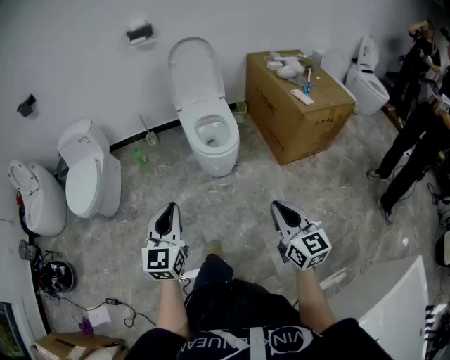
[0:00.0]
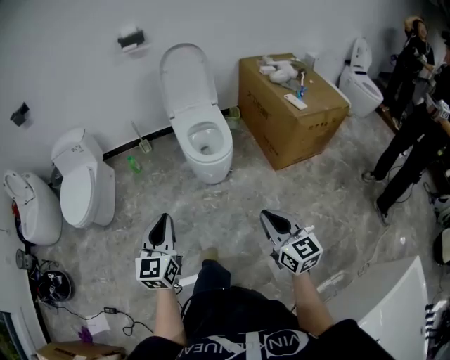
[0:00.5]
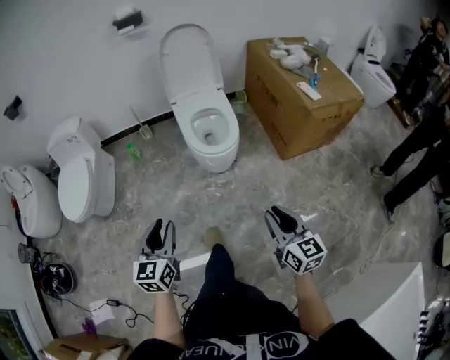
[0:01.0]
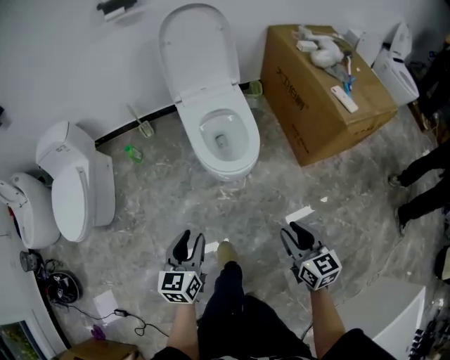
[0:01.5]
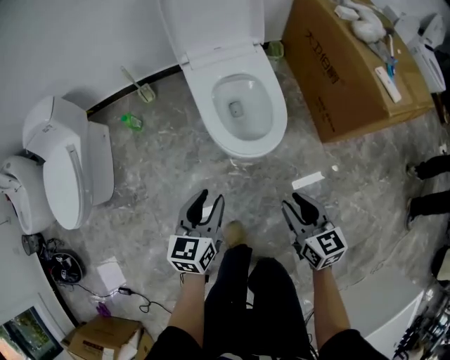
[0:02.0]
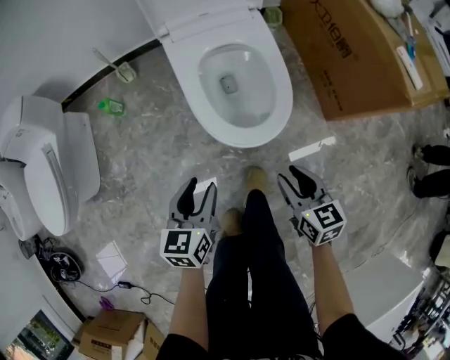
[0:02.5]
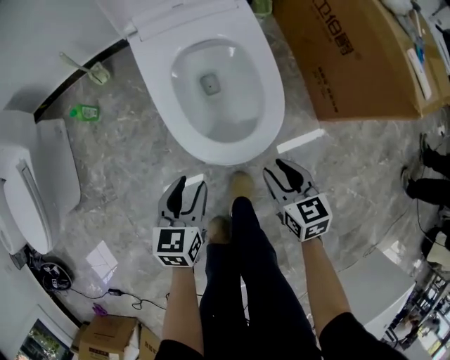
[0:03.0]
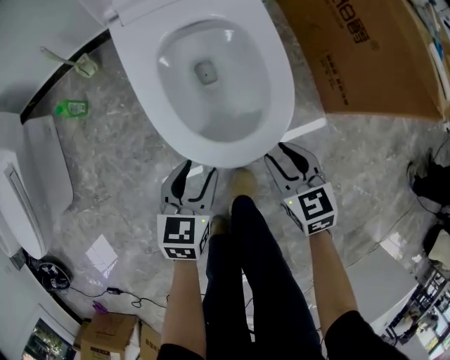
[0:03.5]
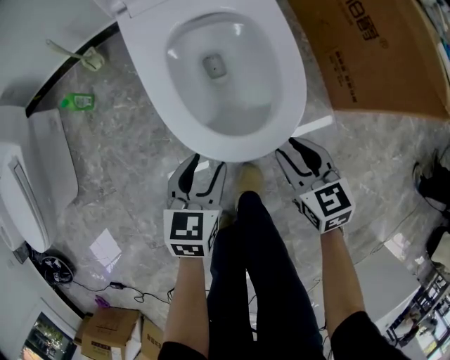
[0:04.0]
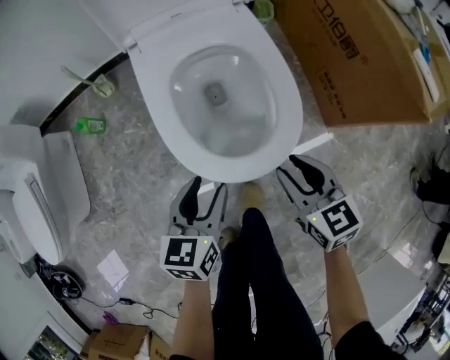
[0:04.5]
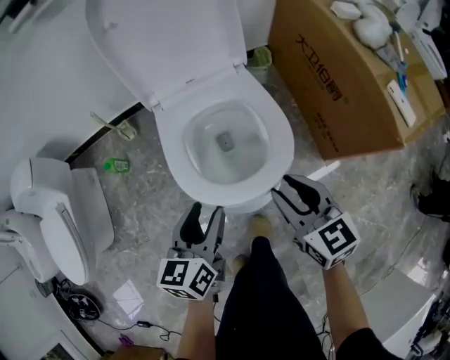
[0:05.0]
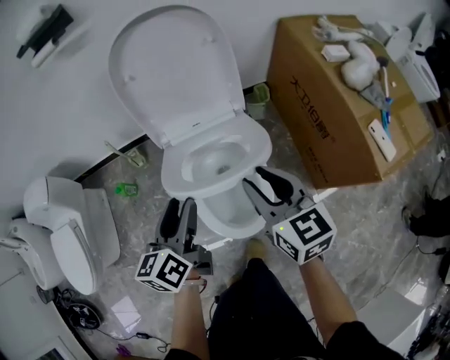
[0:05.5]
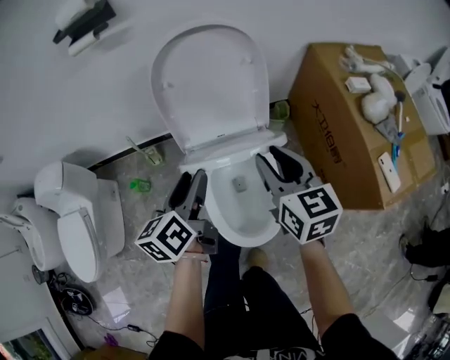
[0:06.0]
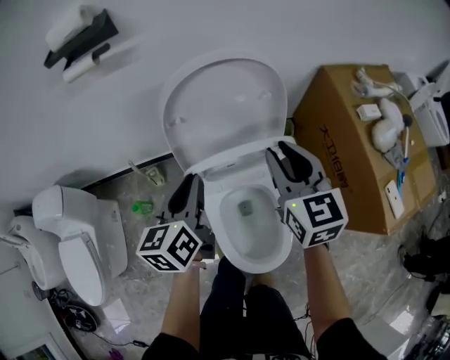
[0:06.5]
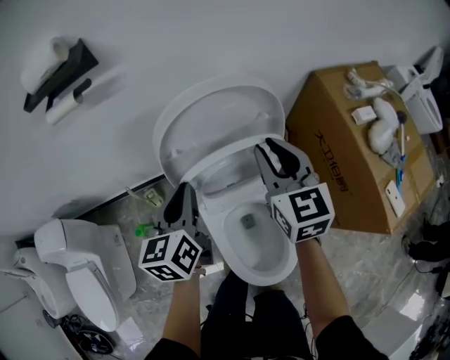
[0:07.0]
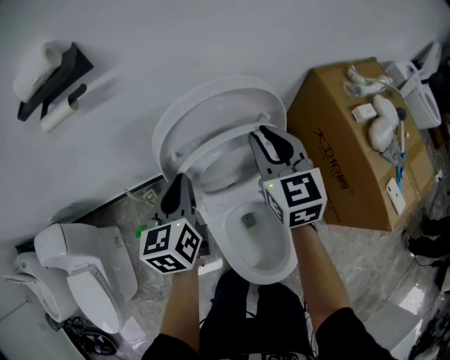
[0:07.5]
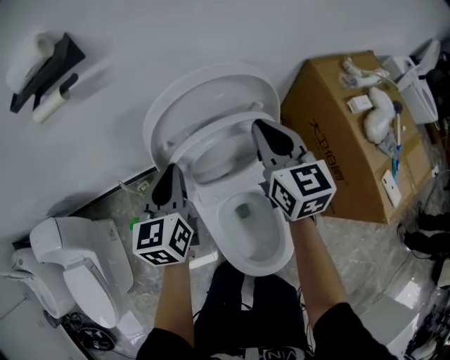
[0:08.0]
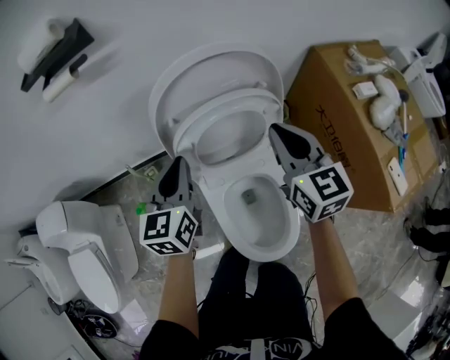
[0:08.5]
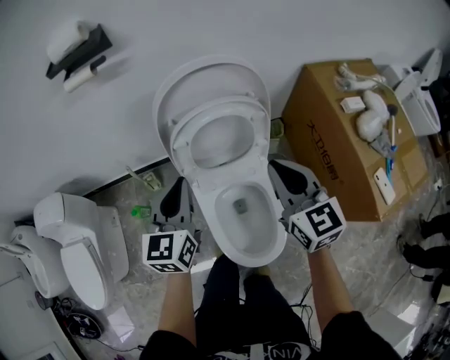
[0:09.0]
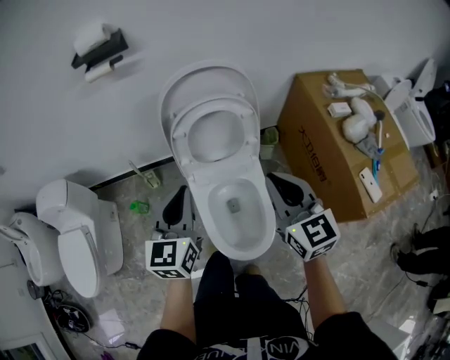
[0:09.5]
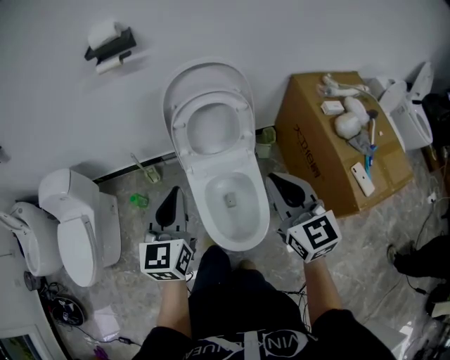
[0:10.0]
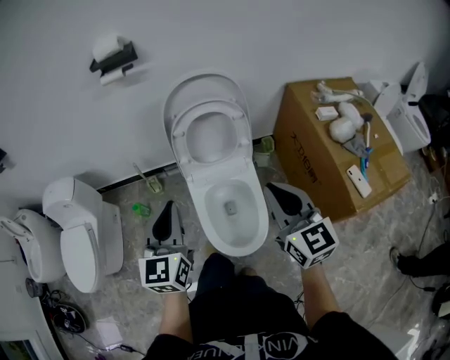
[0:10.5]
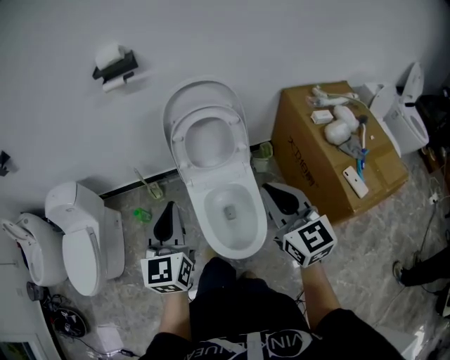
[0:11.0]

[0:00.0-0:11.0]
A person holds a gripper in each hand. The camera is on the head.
0:00.0 to 0:02.0: Both grippers move forward and downward, approximately 40 cm. The right gripper turns by about 20 degrees, and opens its fingers. Meanwhile the left gripper rotates approximately 30 degrees, and opens up.
0:02.0 to 0:03.5: The grippers both shift downward and forward by about 30 cm. The right gripper turns by approximately 20 degrees.
0:03.5 to 0:05.5: Both grippers travel together upward and forward, some 40 cm. The left gripper swivels some 40 degrees; the right gripper changes its angle by roughly 20 degrees.
0:05.5 to 0:07.5: The two grippers go about 30 cm forward. The left gripper closes its fingers.
0:07.5 to 0:09.0: The two grippers go approximately 15 cm backward.
0:09.0 to 0:11.0: Both grippers travel together backward and upward, about 25 cm.

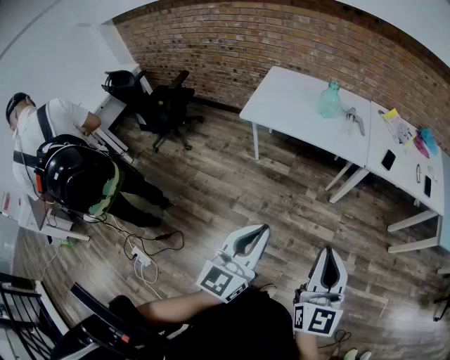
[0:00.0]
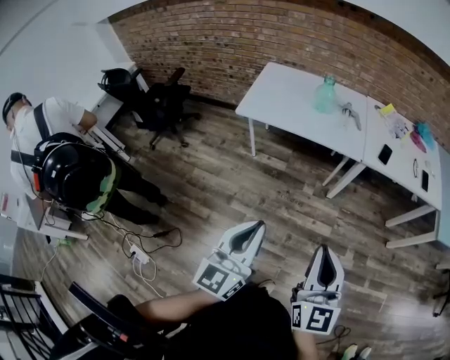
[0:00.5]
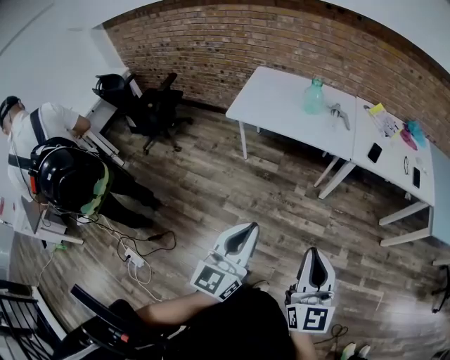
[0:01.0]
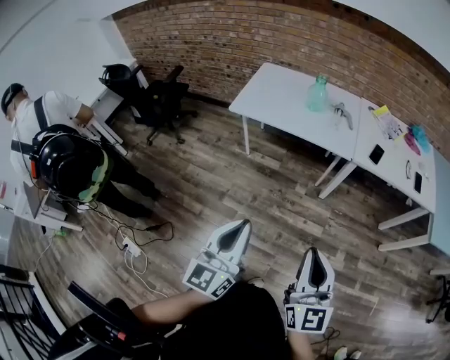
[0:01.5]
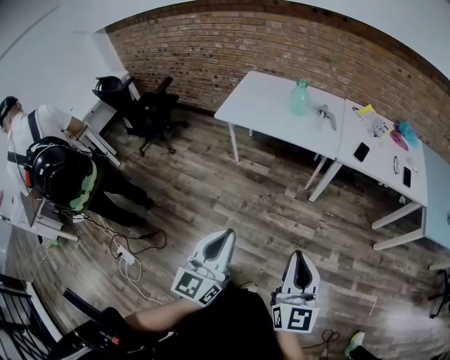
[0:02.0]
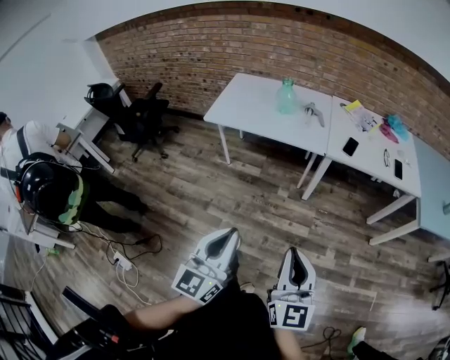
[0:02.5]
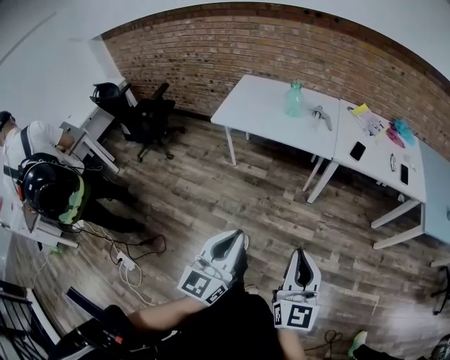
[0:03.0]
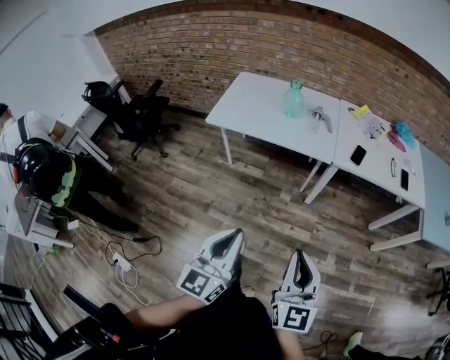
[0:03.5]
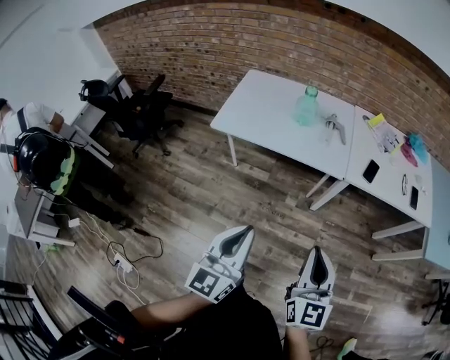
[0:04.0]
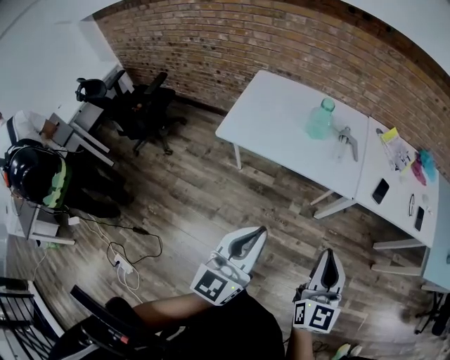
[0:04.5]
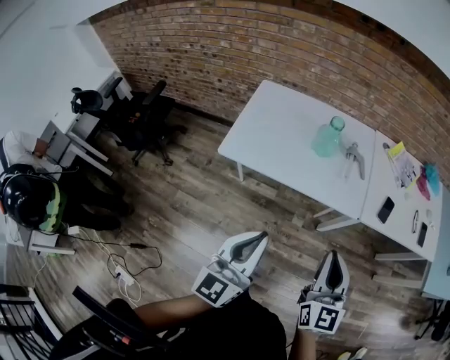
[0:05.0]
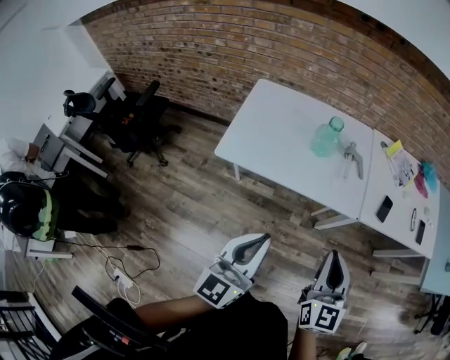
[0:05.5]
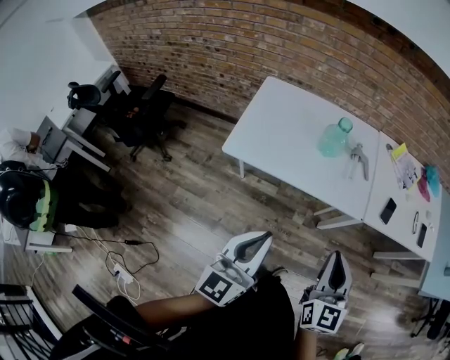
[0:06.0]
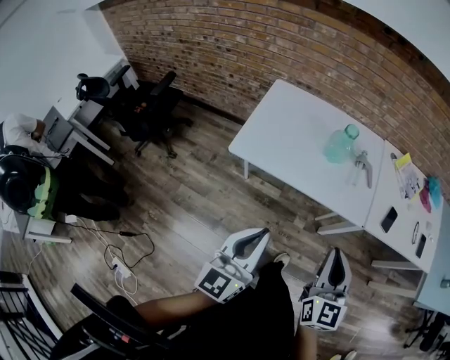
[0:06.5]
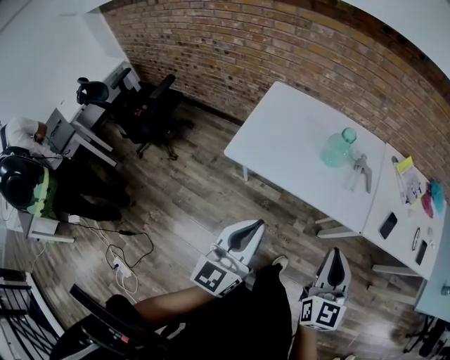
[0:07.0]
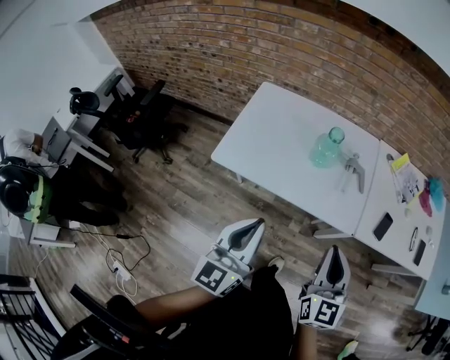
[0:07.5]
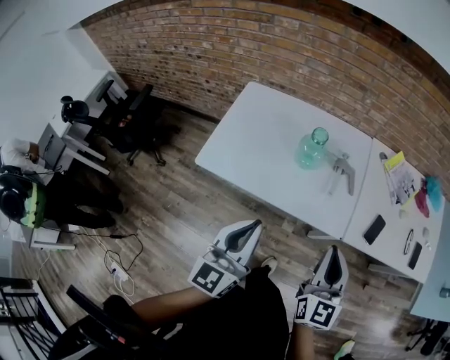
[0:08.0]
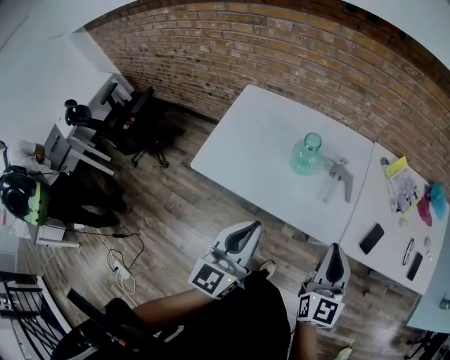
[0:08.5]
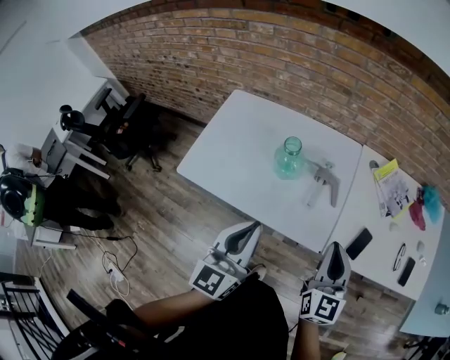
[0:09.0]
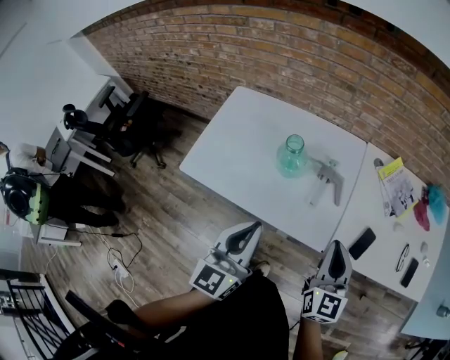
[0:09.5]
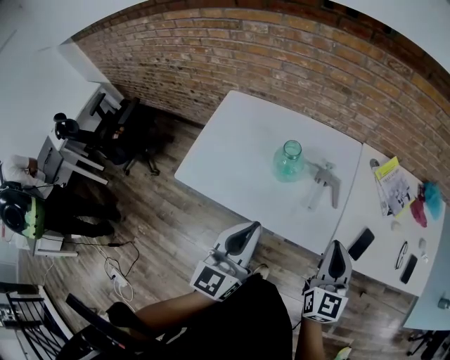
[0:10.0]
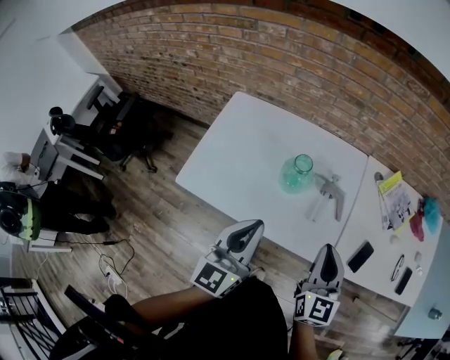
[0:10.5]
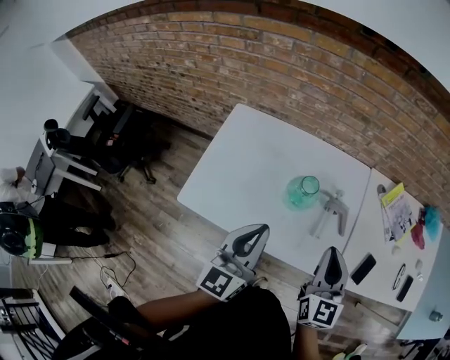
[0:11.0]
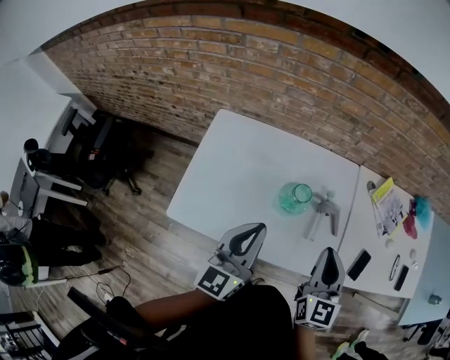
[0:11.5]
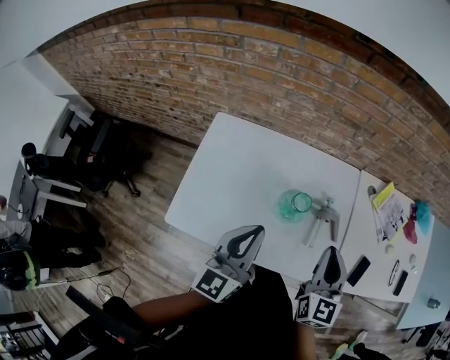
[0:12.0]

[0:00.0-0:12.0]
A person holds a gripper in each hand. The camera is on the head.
0:00.0 to 0:02.0: The right gripper heads to the right and backward, covering some 10 cm. Meanwhile the left gripper travels backward and to the right by some 10 cm.
0:02.0 to 0:04.0: The grippers both shift forward by approximately 20 cm.
0:04.0 to 0:06.0: Both grippers travel together forward and to the left, some 20 cm.
0:06.0 to 0:08.0: The grippers both shift forward and to the right by roughly 15 cm.
0:08.0 to 0:10.0: The grippers both shift forward and to the right by approximately 15 cm.
0:10.0 to 0:12.0: The grippers both shift forward and to the left by some 20 cm.

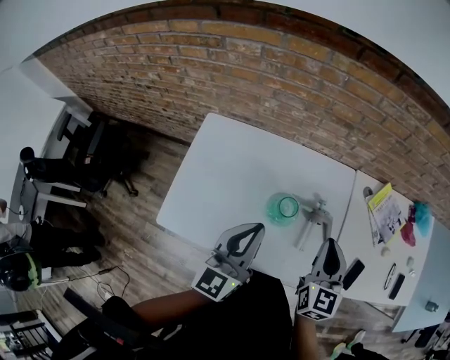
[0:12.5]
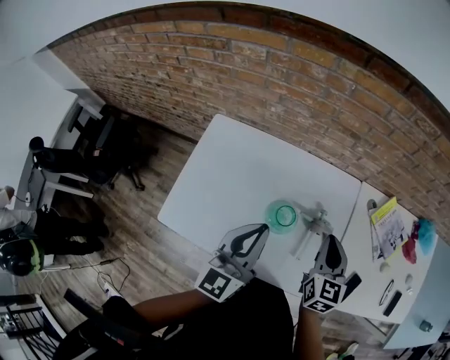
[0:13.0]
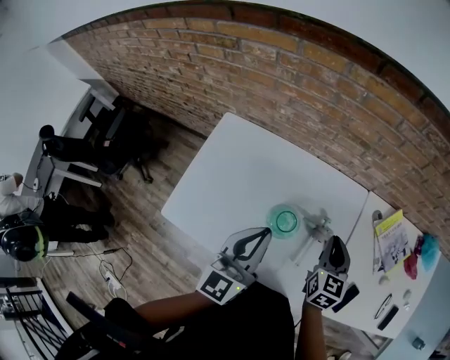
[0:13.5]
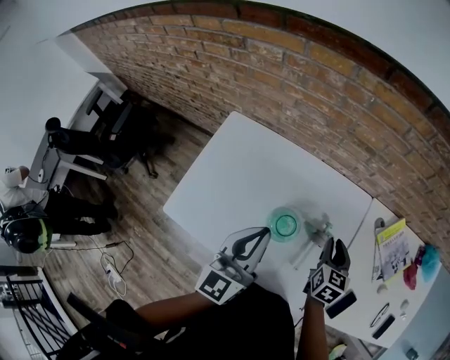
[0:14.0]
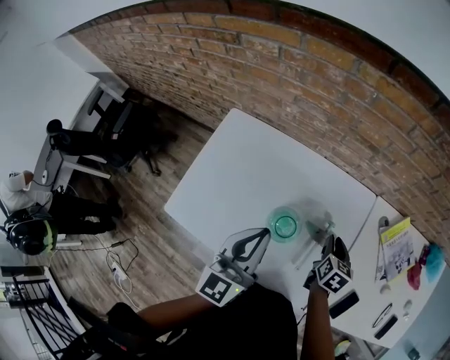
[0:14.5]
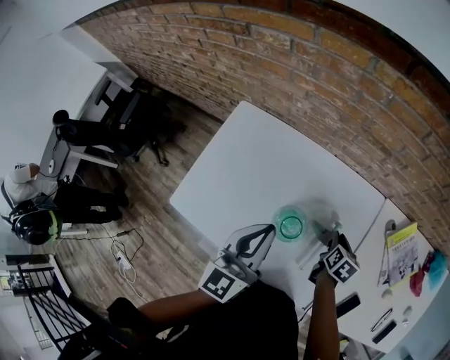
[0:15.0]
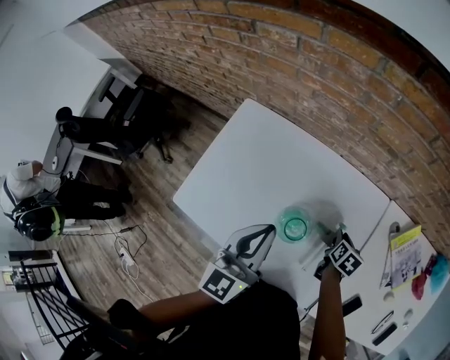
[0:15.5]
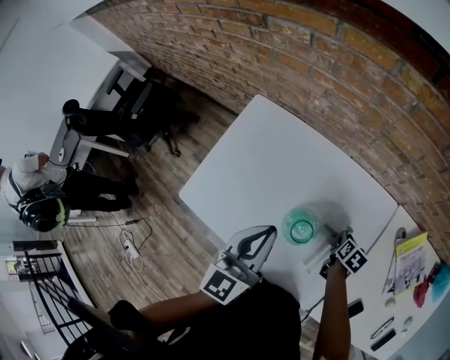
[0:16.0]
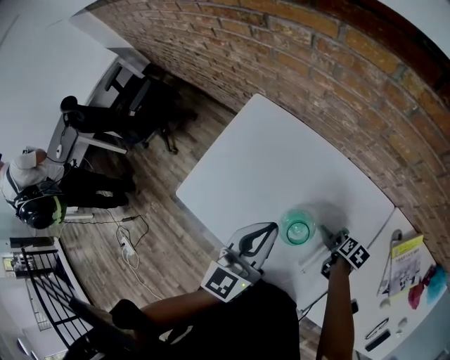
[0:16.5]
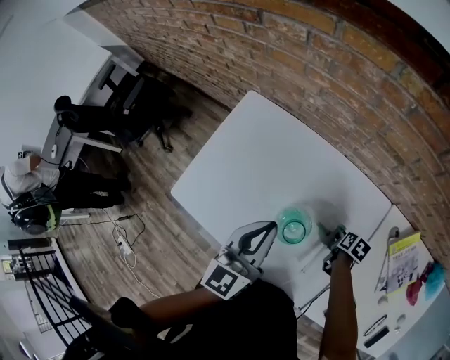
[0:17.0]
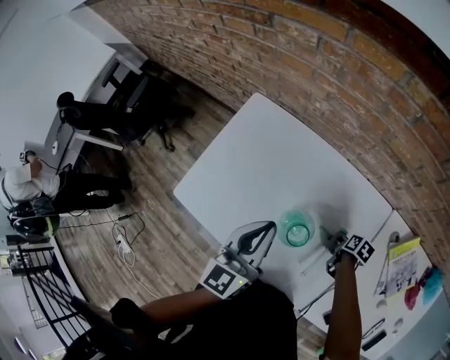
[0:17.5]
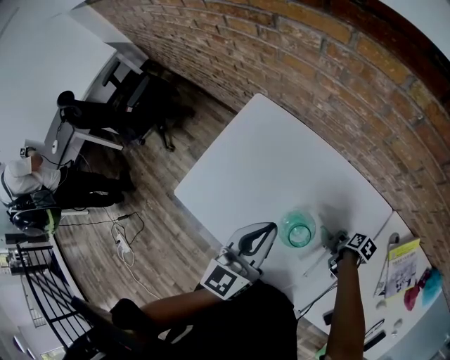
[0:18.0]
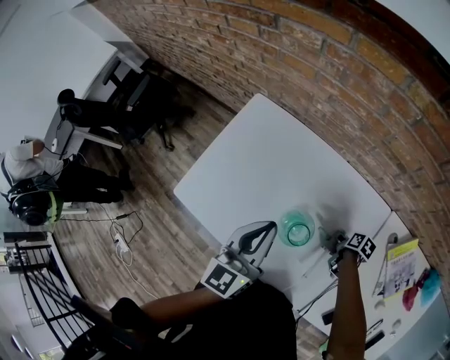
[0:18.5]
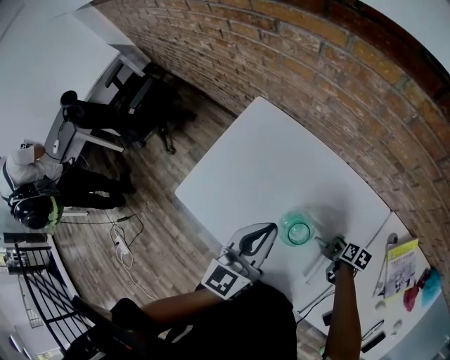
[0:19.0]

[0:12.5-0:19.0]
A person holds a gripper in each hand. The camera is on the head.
0:12.5 to 0:14.5: The right gripper moves downward and forward, some 20 cm, and rotates approximately 30 degrees. The left gripper is displaced forward by about 5 cm.
0:14.5 to 0:17.0: The right gripper goes approximately 15 cm downward, and changes its angle by roughly 30 degrees.
0:17.0 to 0:19.0: The grippers make only small movements.
